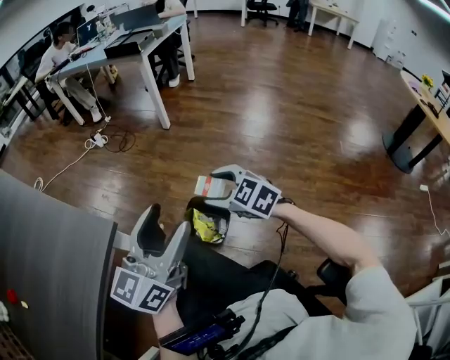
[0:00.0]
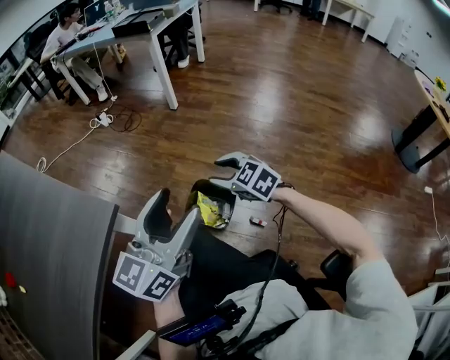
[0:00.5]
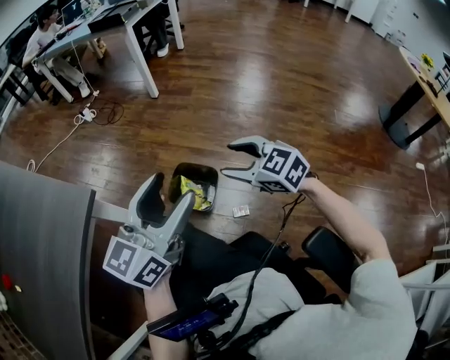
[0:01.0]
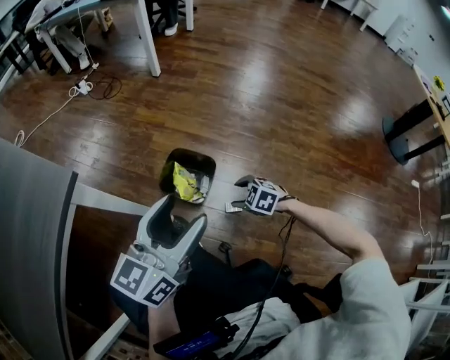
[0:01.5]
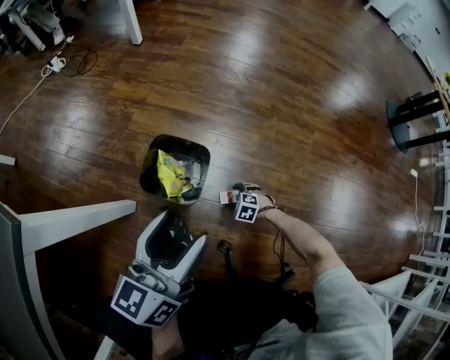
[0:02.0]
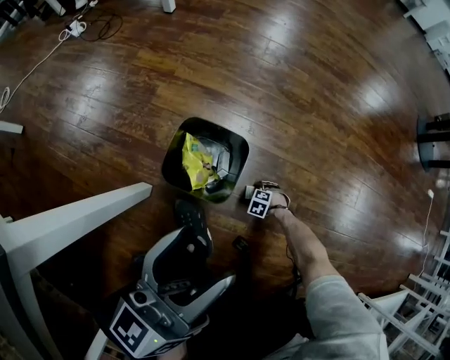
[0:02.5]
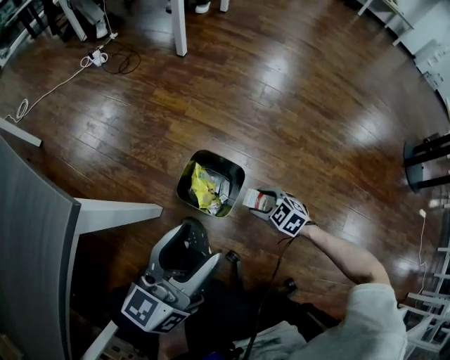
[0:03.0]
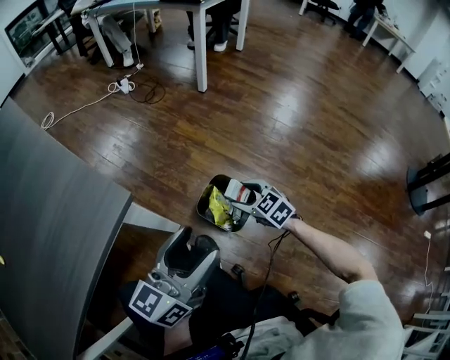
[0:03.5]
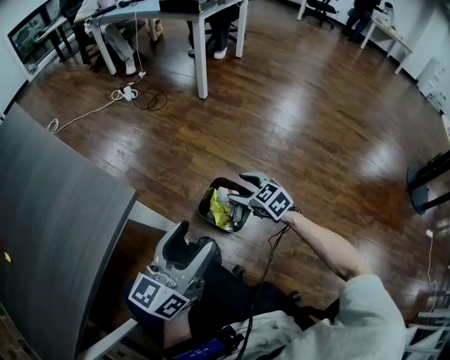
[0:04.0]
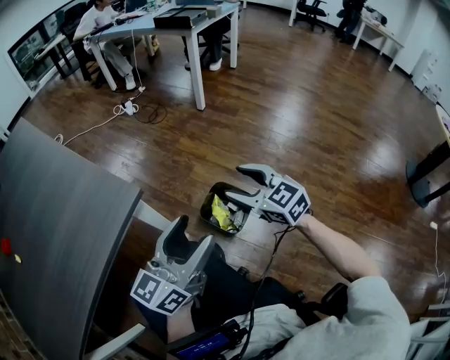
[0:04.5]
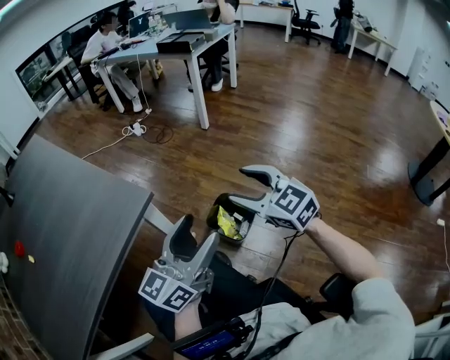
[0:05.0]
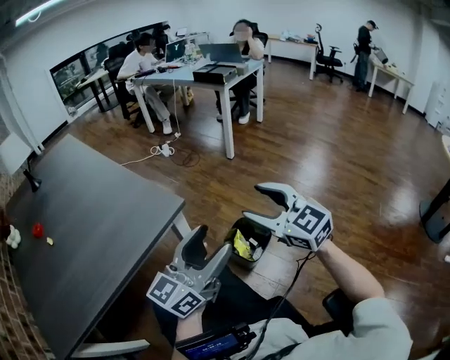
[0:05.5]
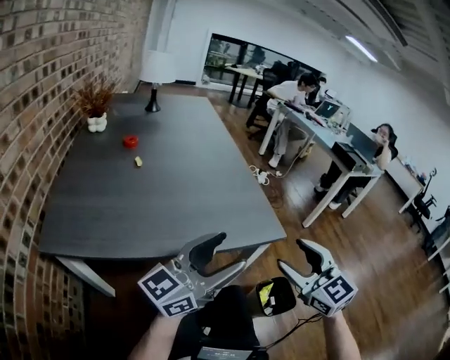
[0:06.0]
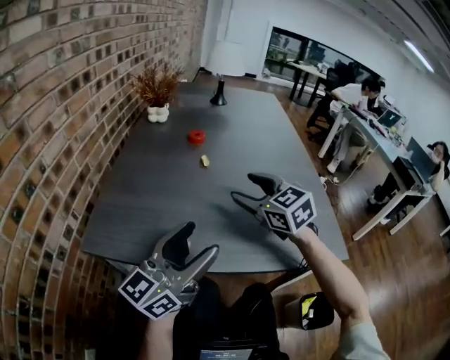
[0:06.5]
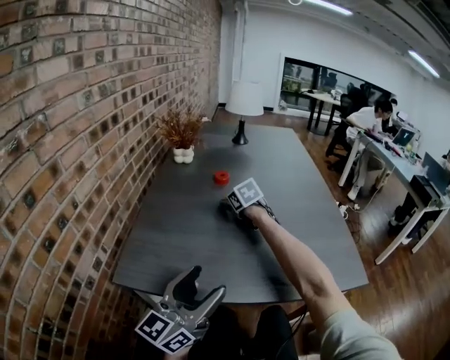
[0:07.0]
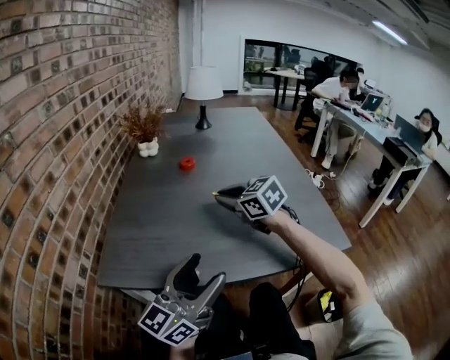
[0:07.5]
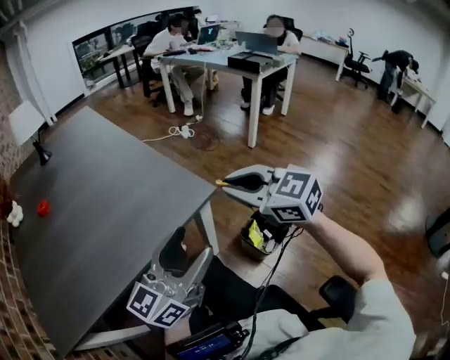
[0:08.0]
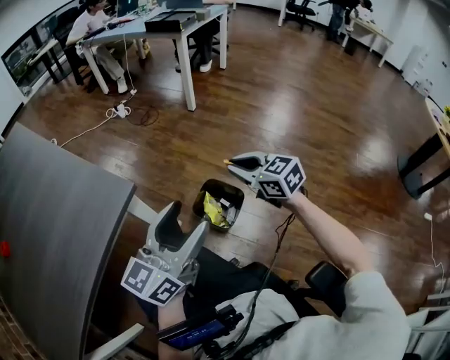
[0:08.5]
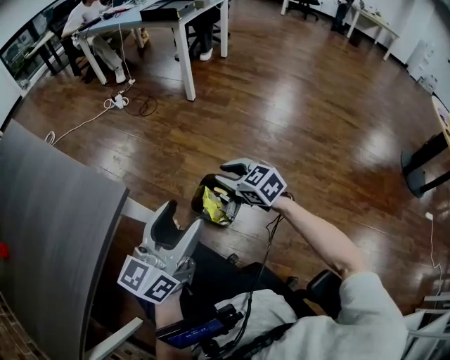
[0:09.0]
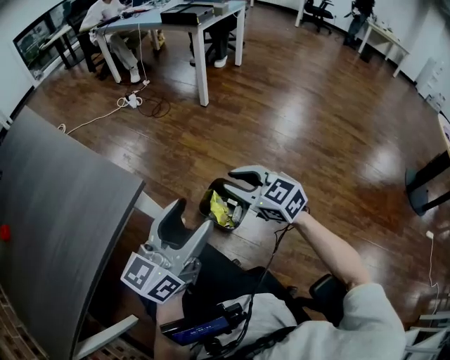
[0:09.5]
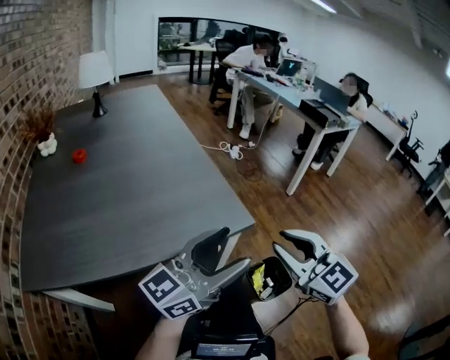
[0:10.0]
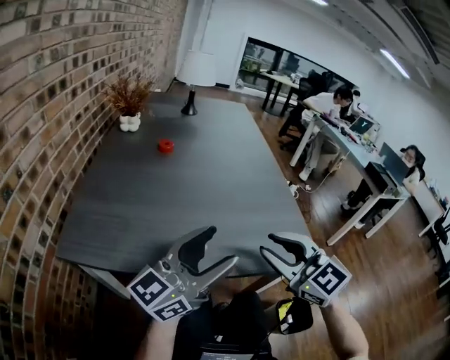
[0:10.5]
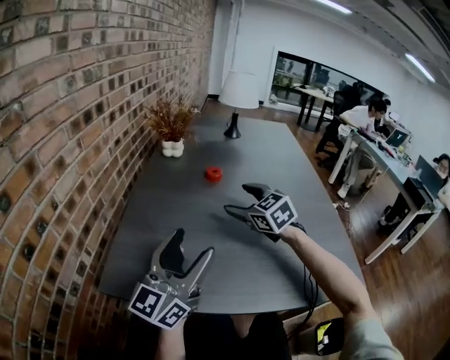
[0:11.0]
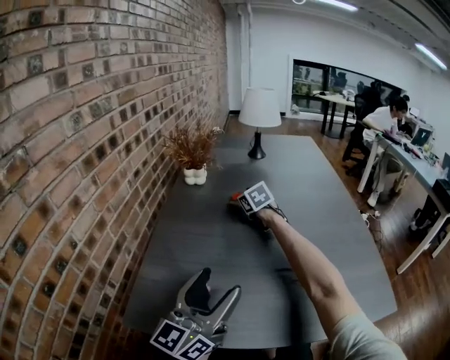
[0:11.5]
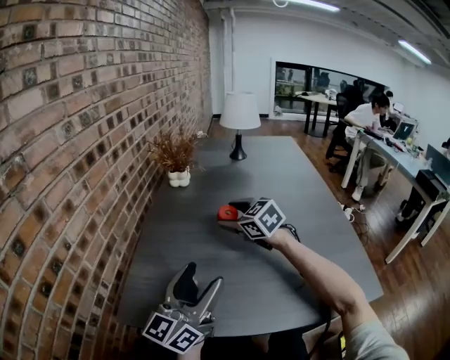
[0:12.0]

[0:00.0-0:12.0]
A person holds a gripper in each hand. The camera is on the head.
0:00.0 to 0:02.0: The right gripper moves up and down over approximately 60 cm, changing direction 2 times, and tilts its fingers approximately 40 degrees downward; the left gripper goes roughly 20 cm downward, and swivels approximately 20 degrees.
0:02.0 to 0:04.0: The right gripper goes about 40 cm upward, and angles its fingers upward, by approximately 40 degrees. The left gripper is displaced upward by some 10 cm.
0:04.0 to 0:06.0: The left gripper moves to the left, upward and backward, some 30 cm, and changes its angle by some 40 degrees, while the right gripper travels upward, to the left and backward by about 50 cm, and rotates approximately 50 degrees.
0:06.0 to 0:08.0: The right gripper travels downward and back again, approximately 15 cm each way, and closes up.
0:08.0 to 0:10.0: The left gripper goes to the right and returns, some 20 cm each way. Meanwhile the right gripper goes roughly 5 cm to the right and backward, and reaches about 25 cm downward, then returns.
0:10.0 to 0:12.0: The two grippers travel together, about 60 cm. The right gripper turns by roughly 40 degrees, and opens up. Meanwhile the left gripper turns by approximately 50 degrees.

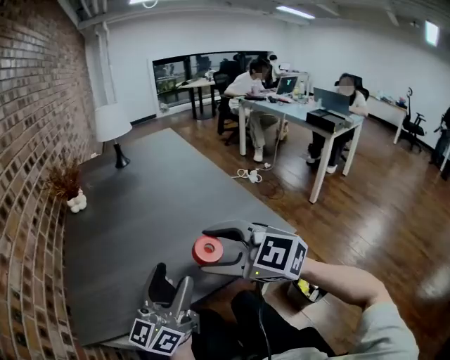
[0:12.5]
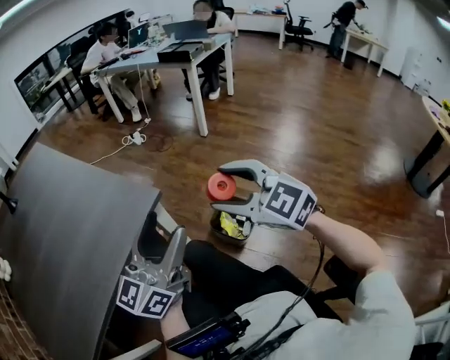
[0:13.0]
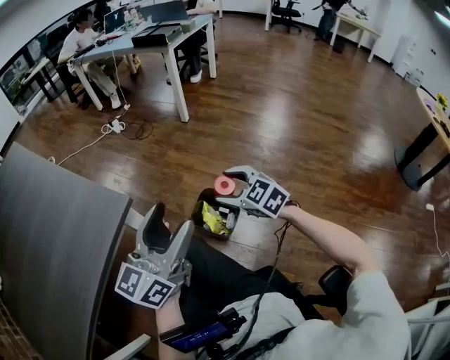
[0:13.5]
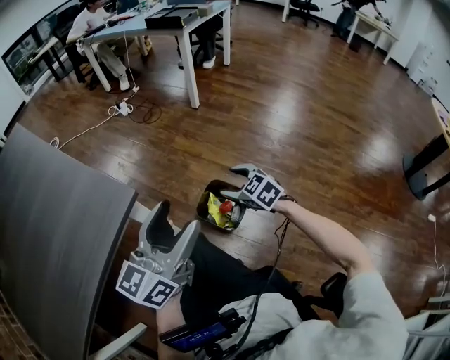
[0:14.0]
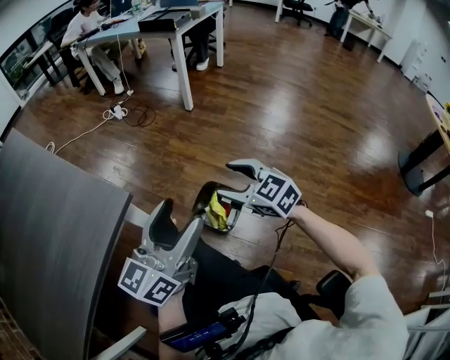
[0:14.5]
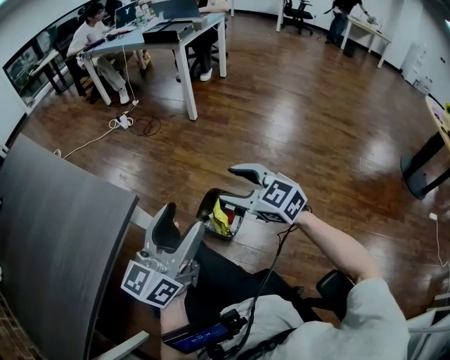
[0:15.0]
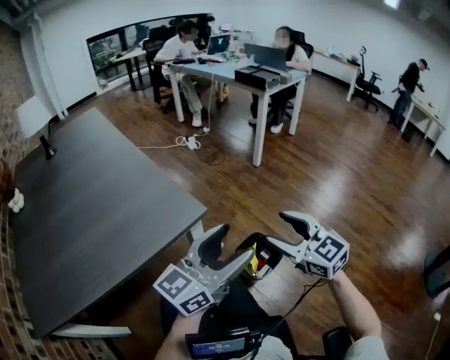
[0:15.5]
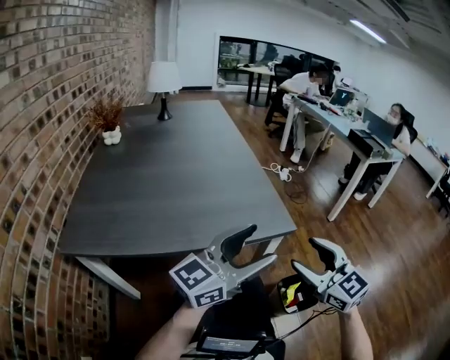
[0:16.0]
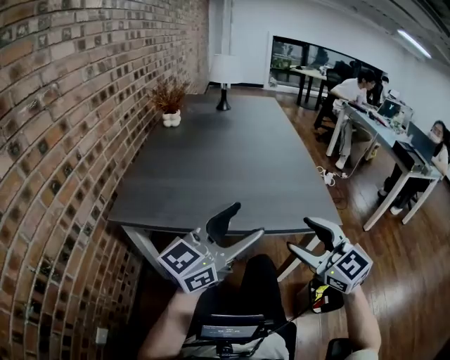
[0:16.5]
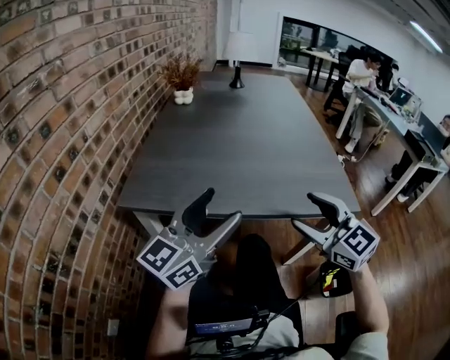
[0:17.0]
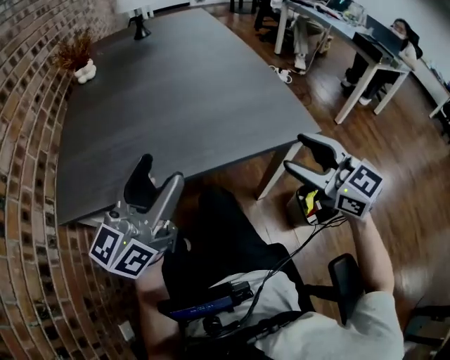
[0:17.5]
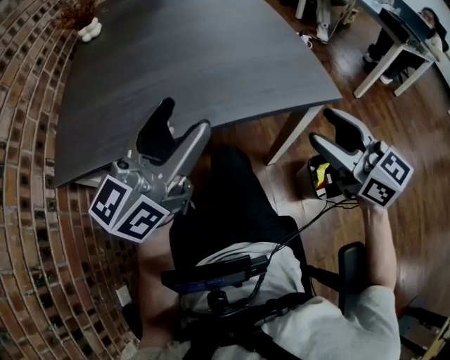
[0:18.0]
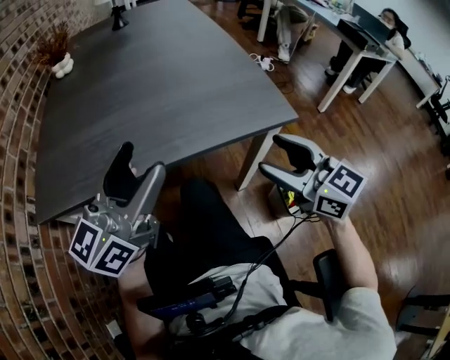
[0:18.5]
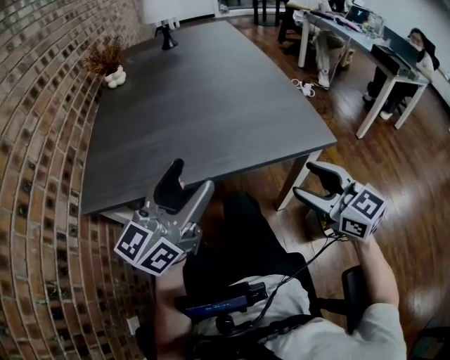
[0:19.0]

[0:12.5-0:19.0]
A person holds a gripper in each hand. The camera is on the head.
0:12.5 to 0:14.5: The two grippers travel together, roughly 50 cm. The left gripper swivels roughly 50 degrees. Meanwhile the right gripper swivels approximately 60 degrees.
0:14.5 to 0:17.0: The pair of grippers is taken about 40 cm. The left gripper turns by roughly 60 degrees. The right gripper changes its angle by about 60 degrees.
0:17.0 to 0:19.0: The right gripper is displaced to the right and downward by roughly 15 cm, and rotates approximately 20 degrees, while the left gripper travels to the right by roughly 10 cm.

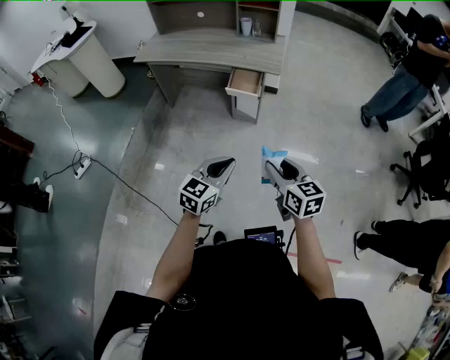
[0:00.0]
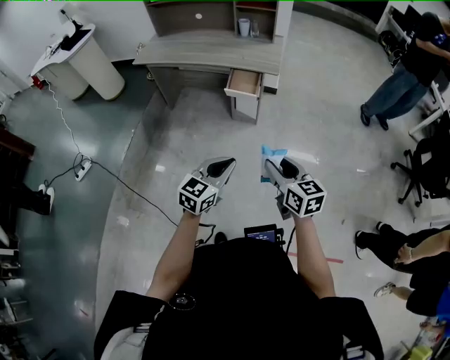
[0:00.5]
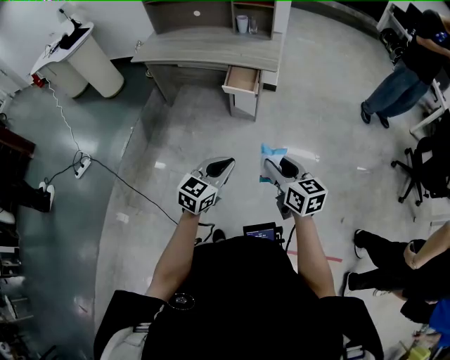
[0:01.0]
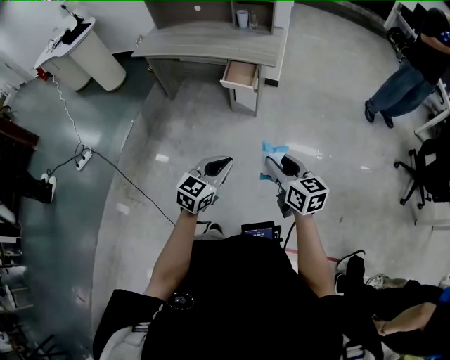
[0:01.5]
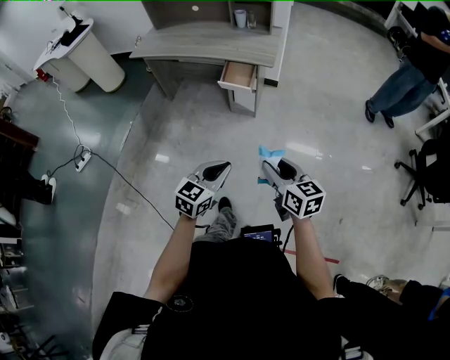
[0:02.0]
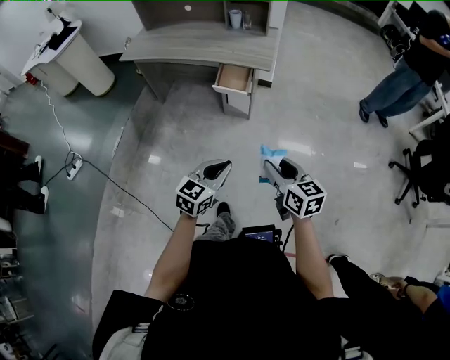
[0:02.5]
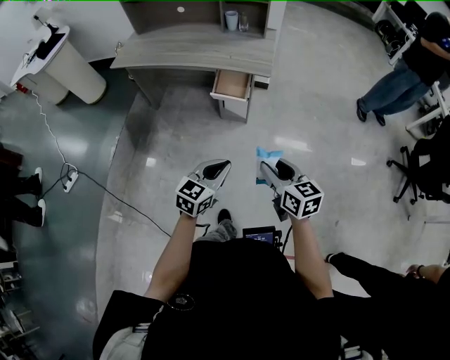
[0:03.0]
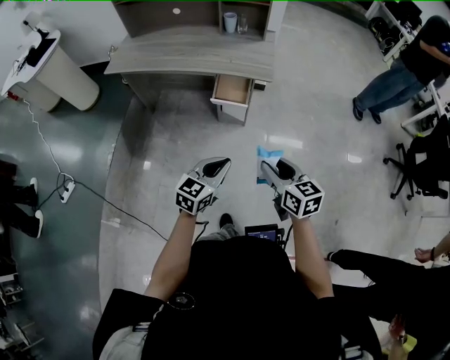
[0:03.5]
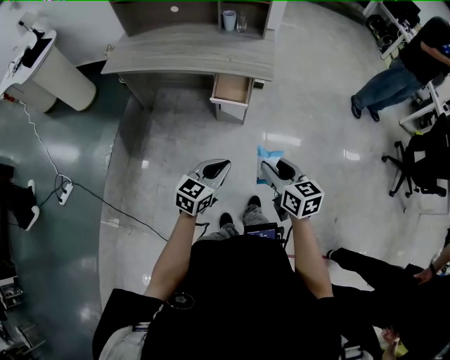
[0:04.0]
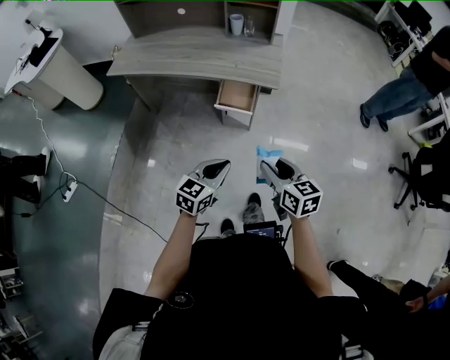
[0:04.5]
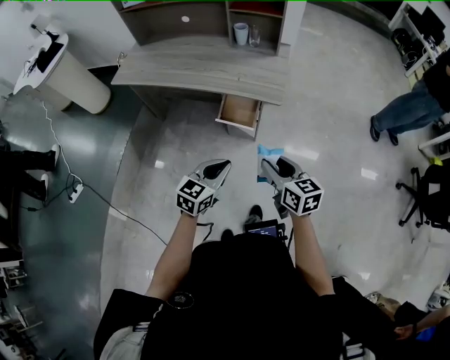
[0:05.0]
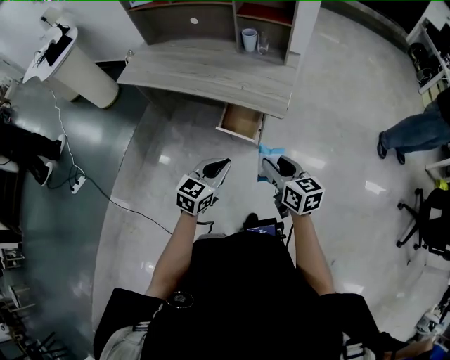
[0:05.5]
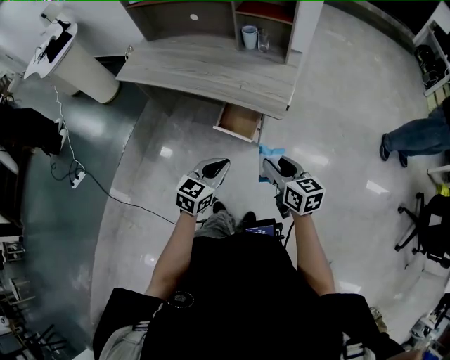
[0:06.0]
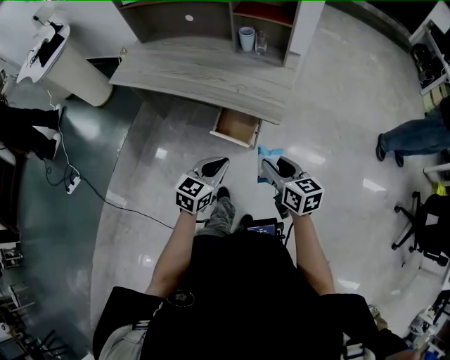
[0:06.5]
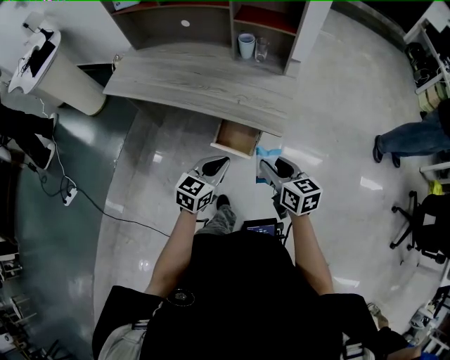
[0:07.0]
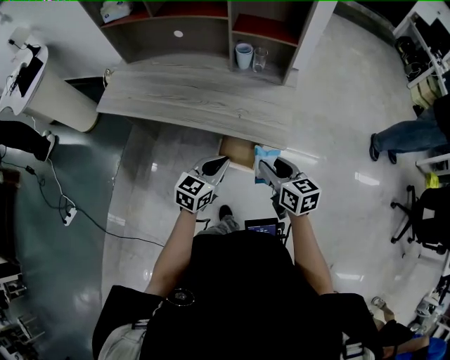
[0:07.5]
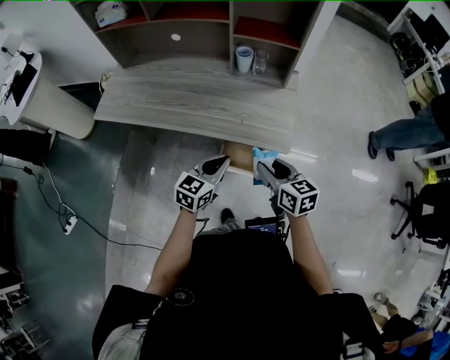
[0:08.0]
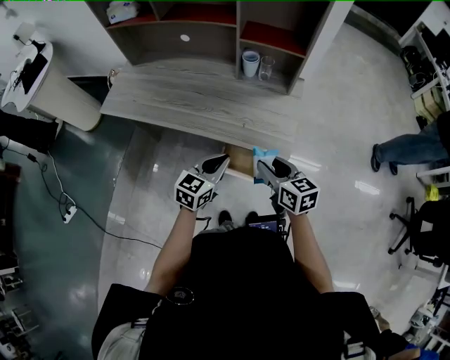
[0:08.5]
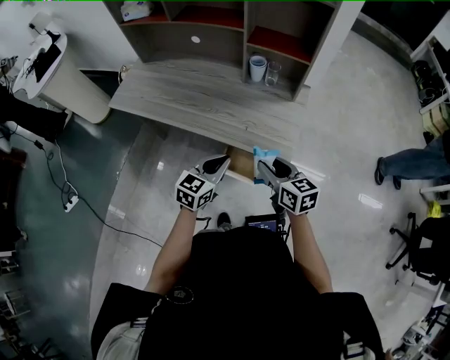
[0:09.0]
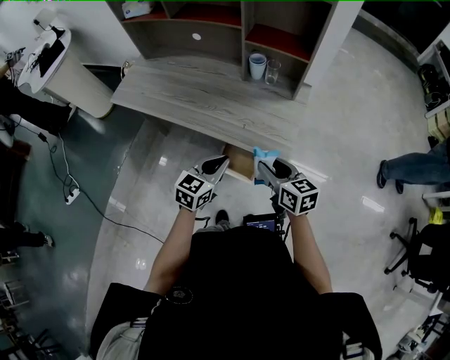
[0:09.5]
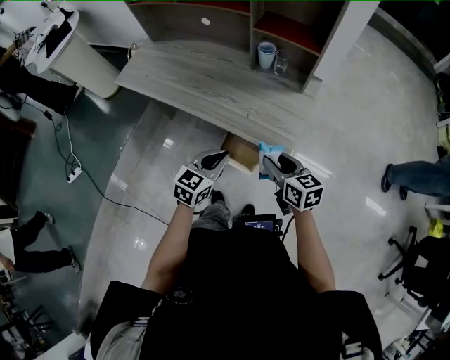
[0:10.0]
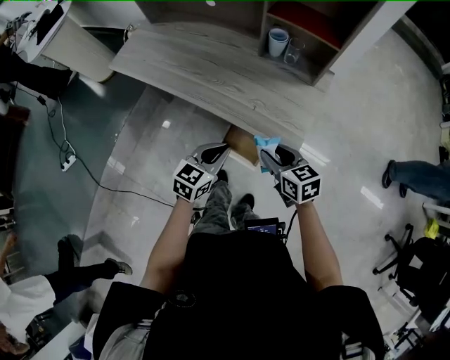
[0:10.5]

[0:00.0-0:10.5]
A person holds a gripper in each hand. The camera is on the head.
0:00.0 to 0:02.0: The two grippers go about 5 cm to the right.
0:02.0 to 0:04.0: The grippers both shift forward and to the left by roughly 20 cm.
0:04.0 to 0:06.5: Both grippers move forward, about 25 cm.
0:06.5 to 0:08.5: The right gripper goes approximately 15 cm forward and to the left. Meanwhile the left gripper travels forward by approximately 15 cm.
0:08.5 to 0:10.5: The right gripper is displaced downward by roughly 5 cm; the left gripper moves some 5 cm.
